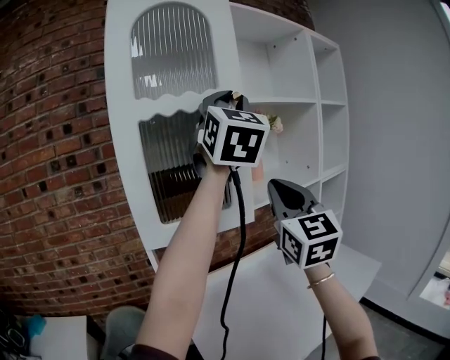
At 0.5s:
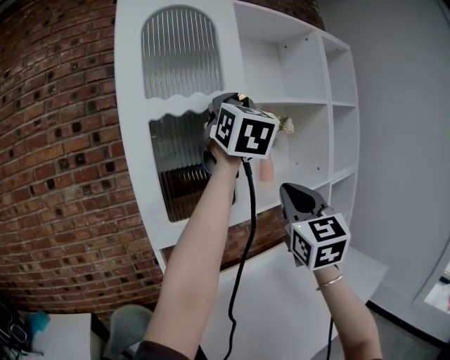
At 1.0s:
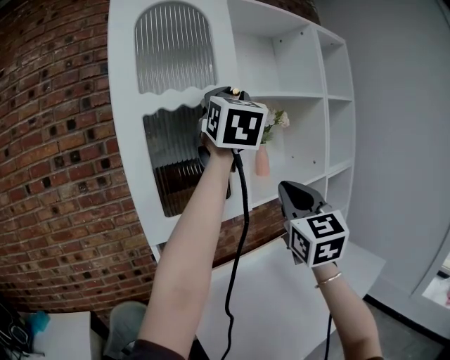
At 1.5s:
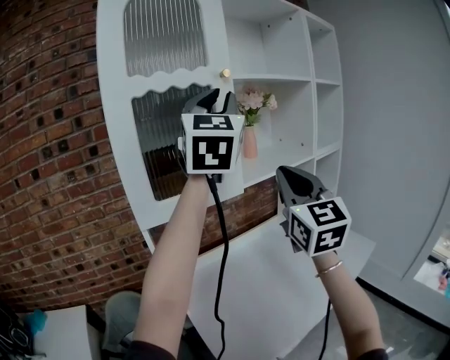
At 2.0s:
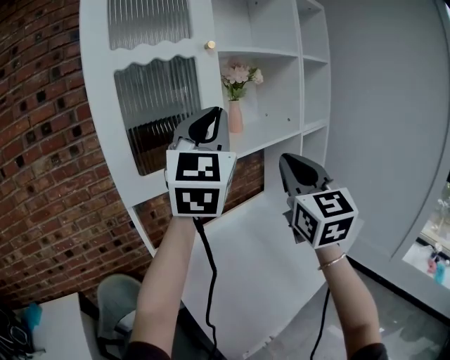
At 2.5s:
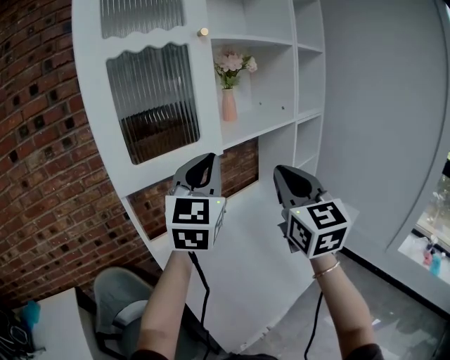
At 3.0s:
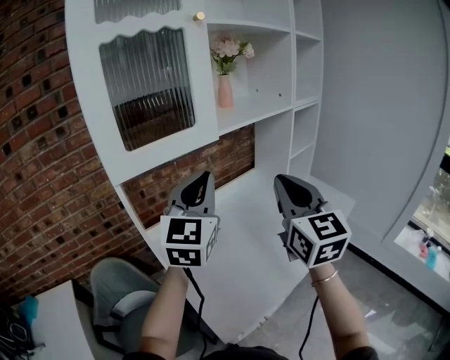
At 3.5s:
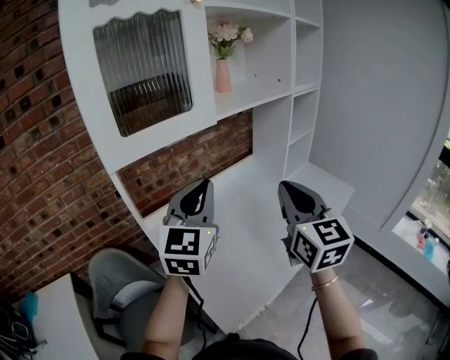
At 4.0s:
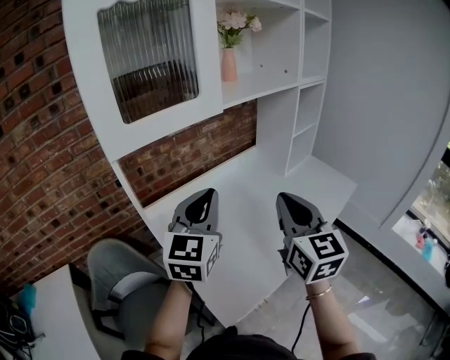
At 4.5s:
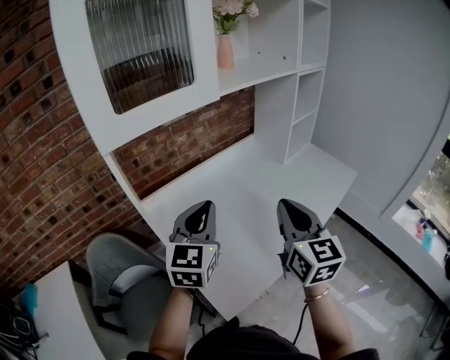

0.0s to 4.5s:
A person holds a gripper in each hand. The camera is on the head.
0.0s to 2.0s: The right gripper moves downward, some 5 cm; the left gripper moves downward and backward, approximately 15 cm.
2.0s to 4.5s: Both grippers move downward, about 30 cm. The right gripper changes its angle by roughly 20 degrees. Meanwhile the left gripper swivels approximately 30 degrees.

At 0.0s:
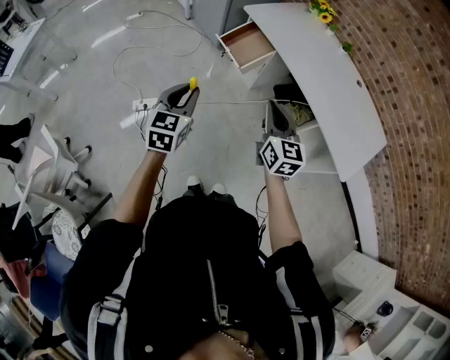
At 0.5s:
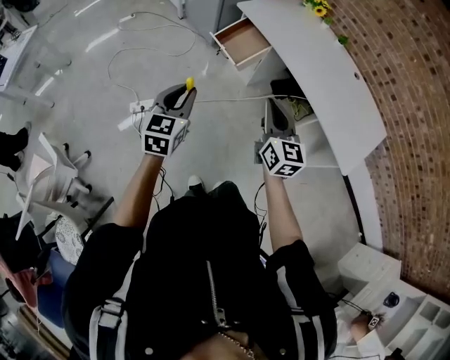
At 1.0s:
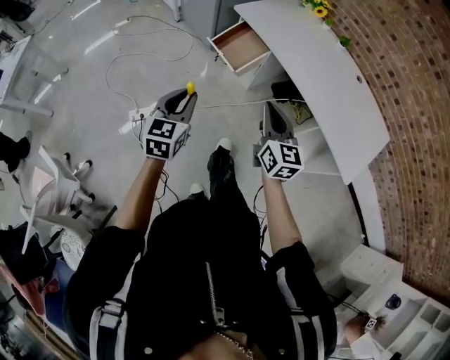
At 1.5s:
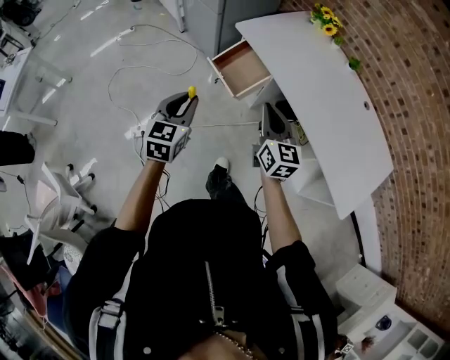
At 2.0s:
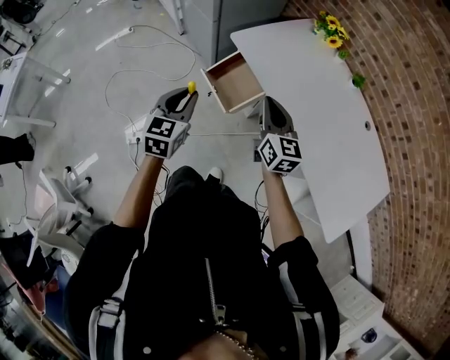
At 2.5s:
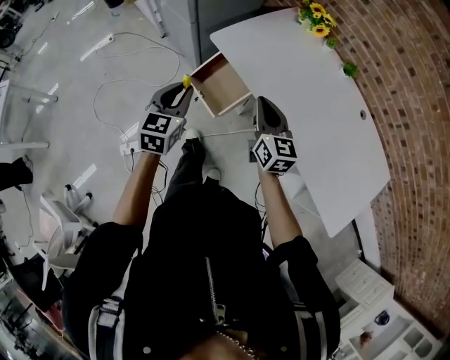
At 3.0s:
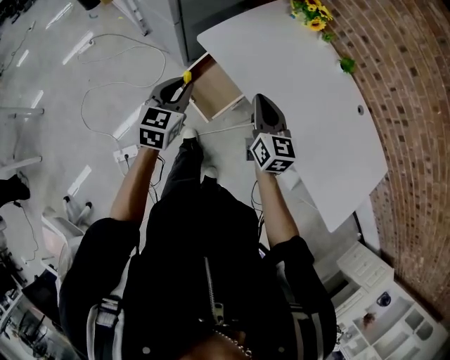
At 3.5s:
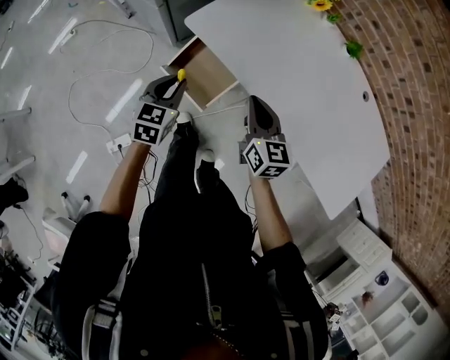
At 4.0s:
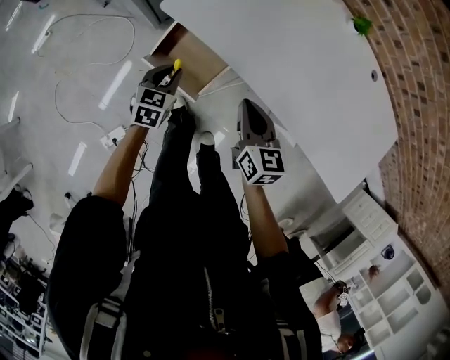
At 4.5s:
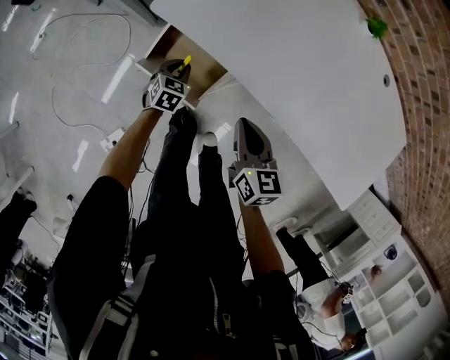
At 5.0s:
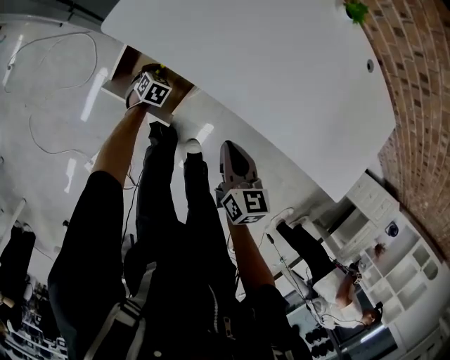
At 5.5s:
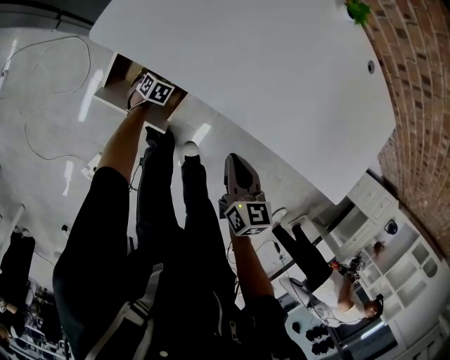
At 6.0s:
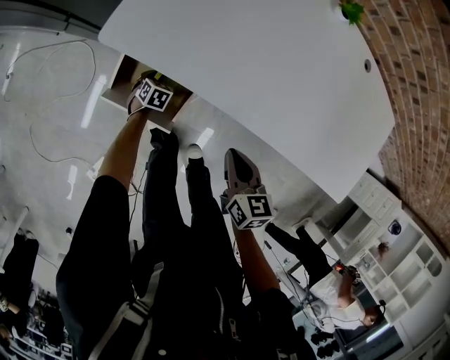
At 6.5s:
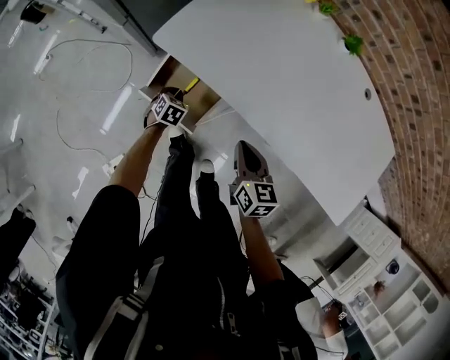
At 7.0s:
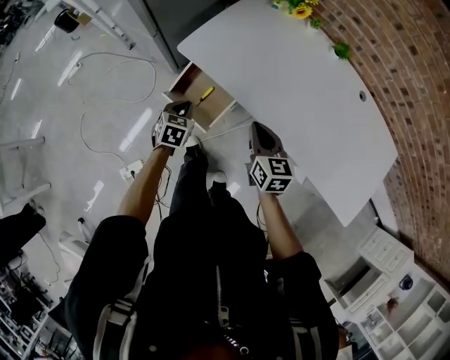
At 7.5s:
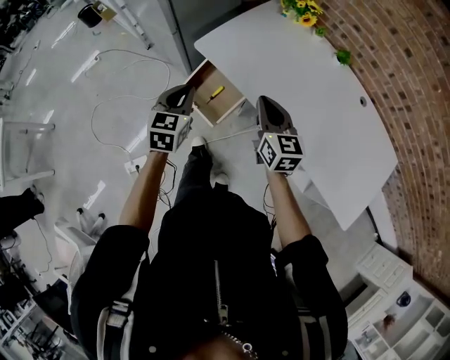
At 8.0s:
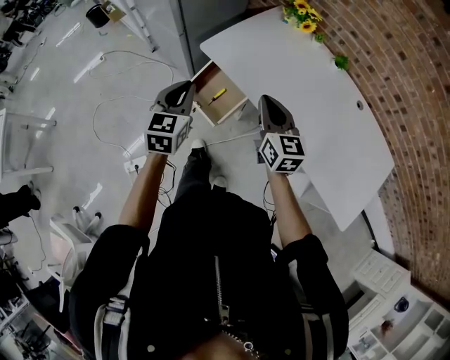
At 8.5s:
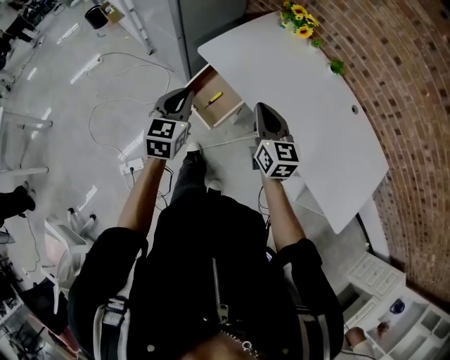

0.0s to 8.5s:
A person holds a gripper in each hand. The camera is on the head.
0.0s to 2.0s: Both grippers move forward, roughly 35 cm.
2.0s to 4.0s: The right gripper travels downward and forward by about 20 cm, and changes its angle by about 30 degrees, while the left gripper moves downward and forward, about 35 cm, and changes its angle by some 30 degrees.
4.0s to 6.5s: The left gripper shifts approximately 15 cm downward, and rotates some 20 degrees.
6.5s to 8.5s: The left gripper shifts about 40 cm upward, and points its fingers roughly 40 degrees further upward, while the right gripper heads upward, covering some 20 cm, and rotates roughly 30 degrees.

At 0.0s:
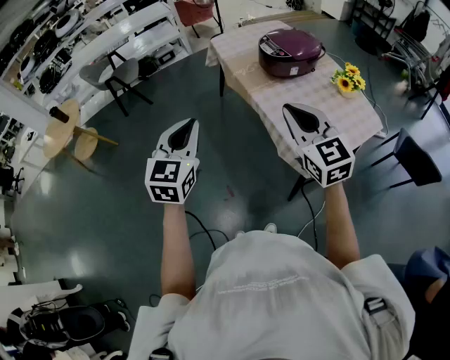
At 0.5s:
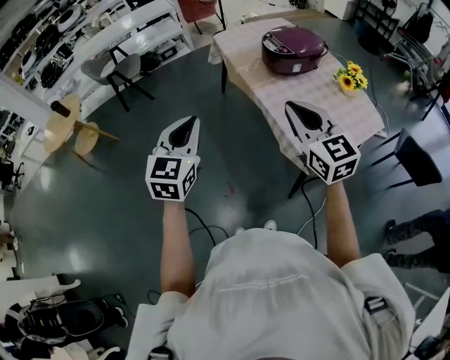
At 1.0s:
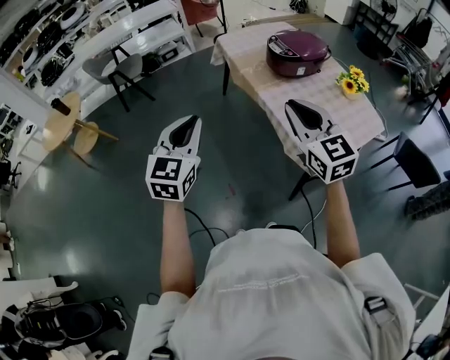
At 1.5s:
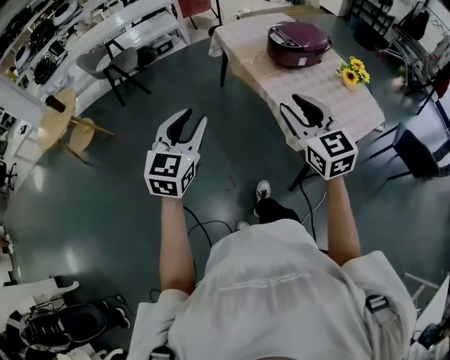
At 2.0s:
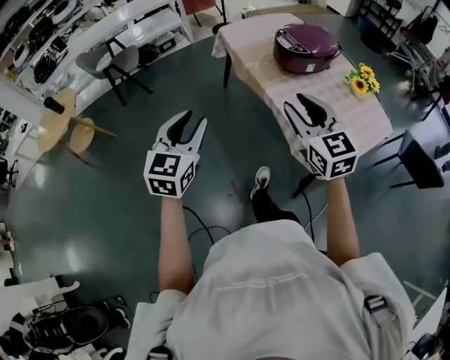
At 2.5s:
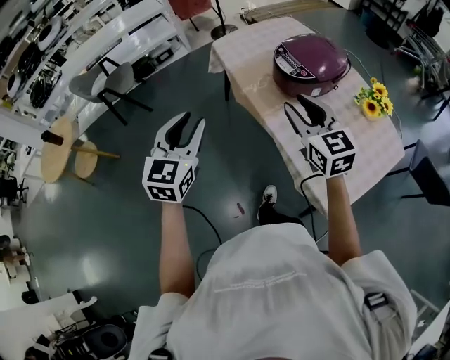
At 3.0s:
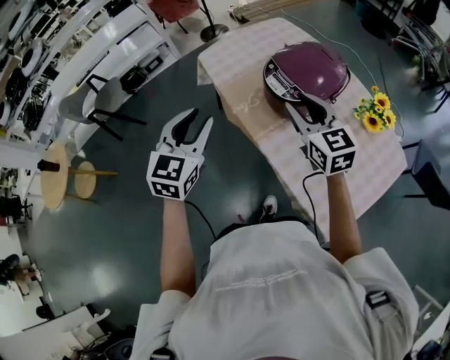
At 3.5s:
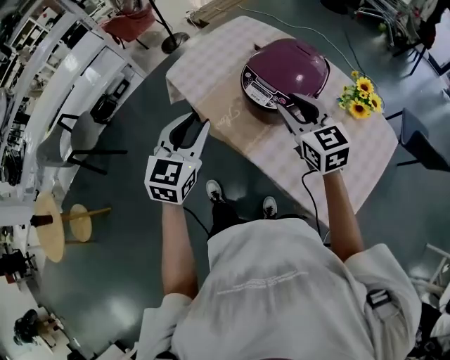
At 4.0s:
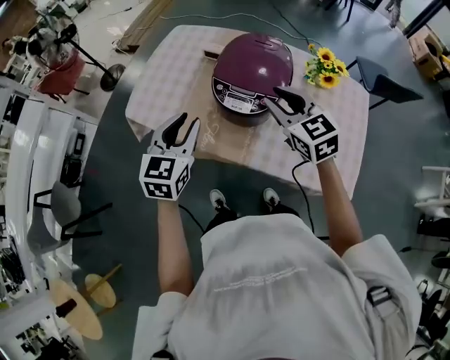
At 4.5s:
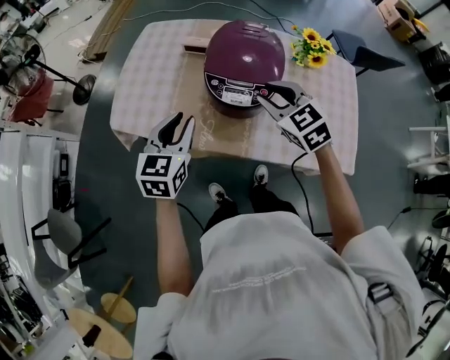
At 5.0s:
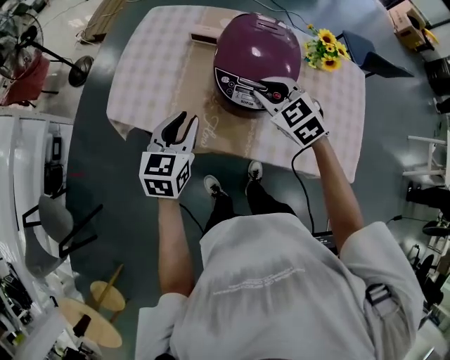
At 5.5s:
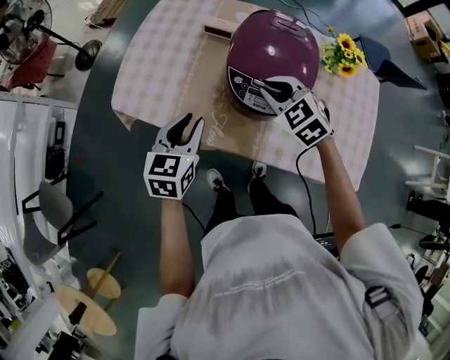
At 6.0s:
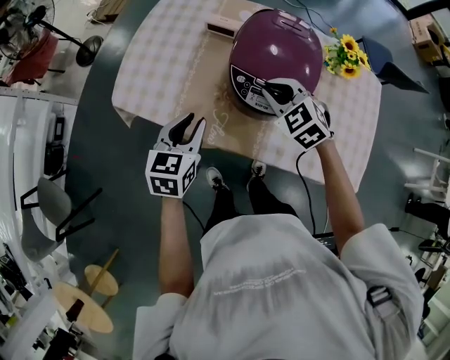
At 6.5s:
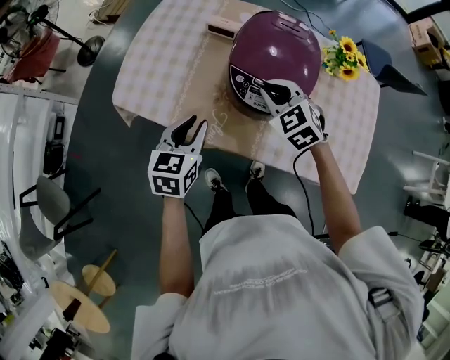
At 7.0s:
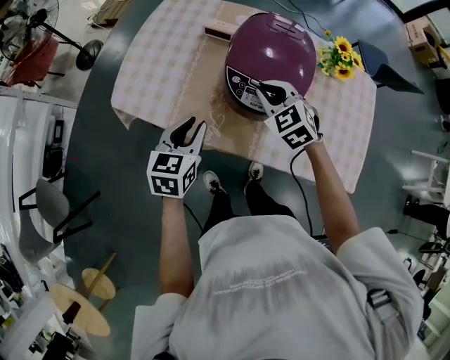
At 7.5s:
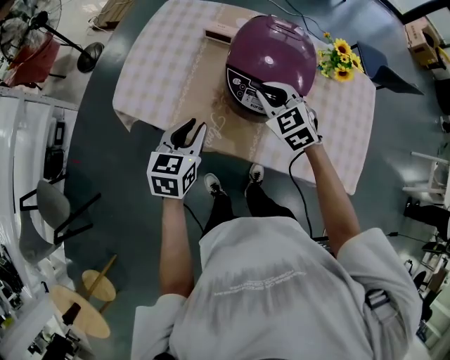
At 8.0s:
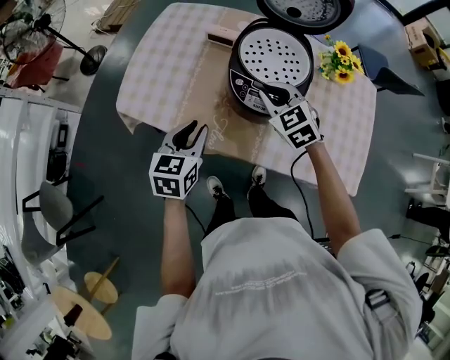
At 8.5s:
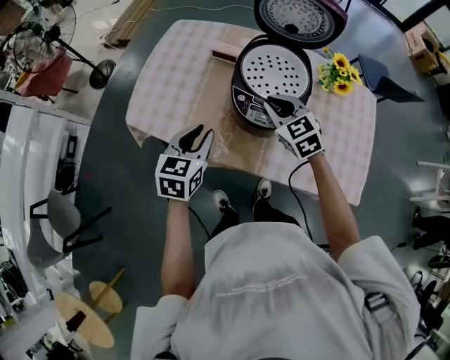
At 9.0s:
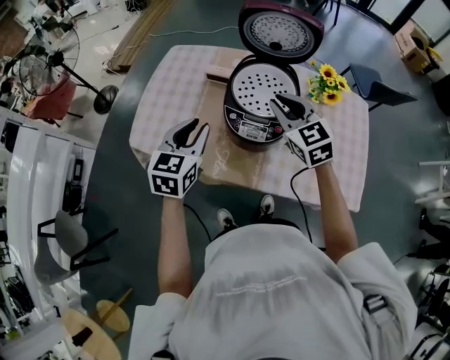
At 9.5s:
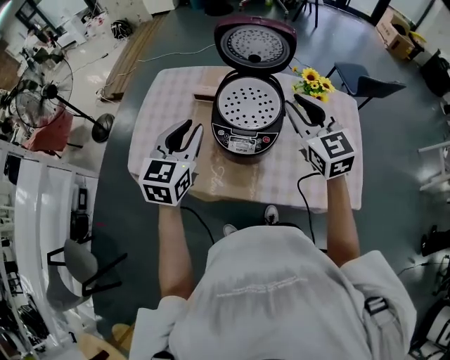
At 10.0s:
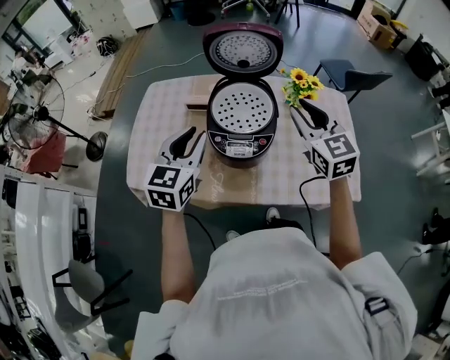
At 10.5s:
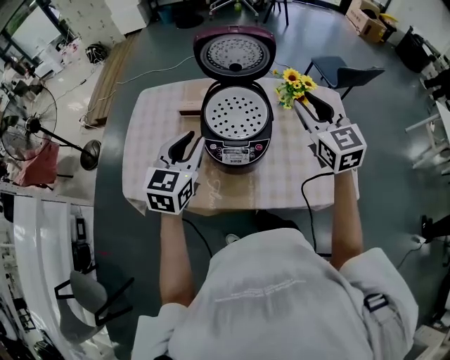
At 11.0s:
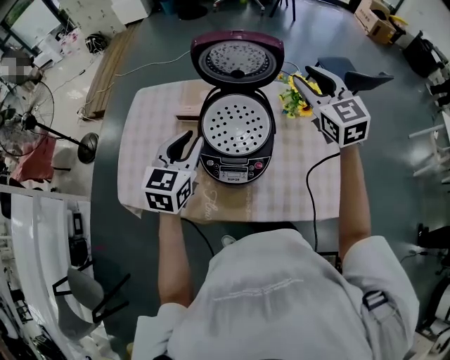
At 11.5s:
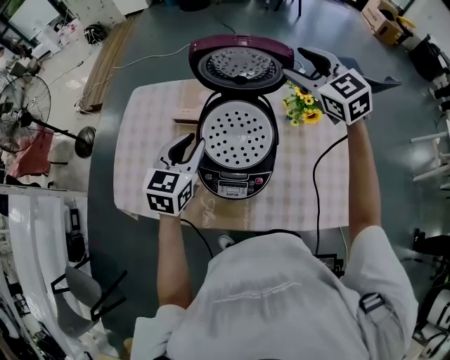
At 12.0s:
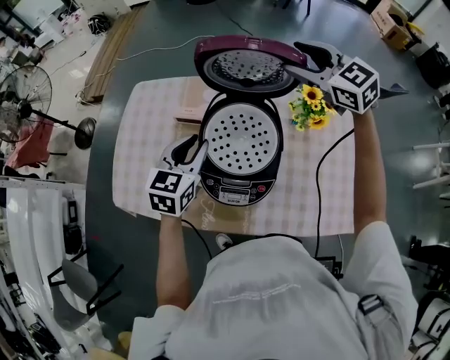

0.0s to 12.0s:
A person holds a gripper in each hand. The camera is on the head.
0.0s to 2.0s: The right gripper travels forward and to the left by about 10 cm, and opens up. Meanwhile the left gripper goes approximately 5 cm to the left, and opens up.
2.0s to 4.0s: The two grippers travel together, approximately 50 cm. The right gripper turns by roughly 40 degrees, while the left gripper swivels some 40 degrees.
4.0s to 6.0s: The left gripper goes approximately 10 cm downward. Meanwhile the right gripper shifts some 15 cm downward, to the left and forward, and turns by approximately 30 degrees.
6.0s to 8.0s: The grippers make only small movements.
8.0s to 10.0s: The right gripper heads upward and to the right, covering some 25 cm, and changes its angle by some 40 degrees. The left gripper moves upward and forward, some 15 cm, and turns by approximately 30 degrees.
10.0s to 12.0s: The left gripper heads forward and downward, covering roughly 15 cm. Meanwhile the right gripper is displaced forward by about 25 cm, turns by some 30 degrees, and opens.

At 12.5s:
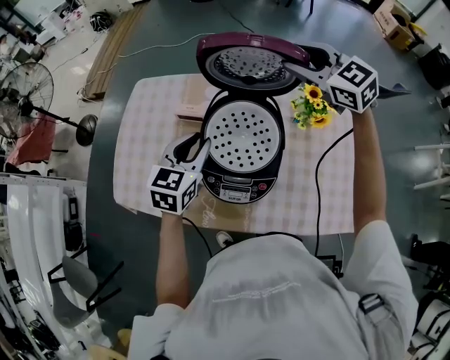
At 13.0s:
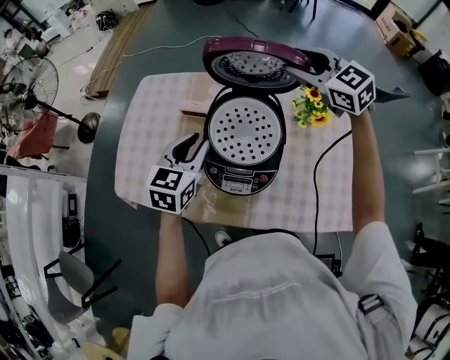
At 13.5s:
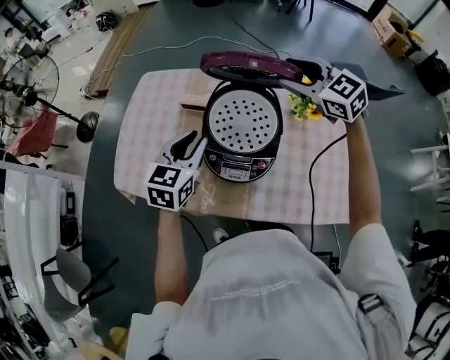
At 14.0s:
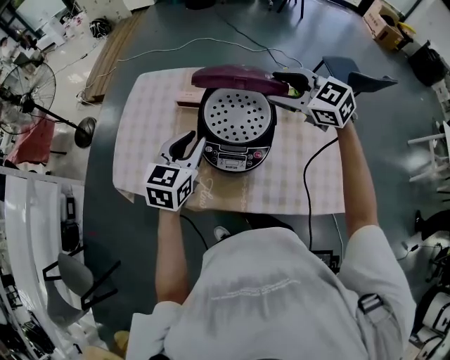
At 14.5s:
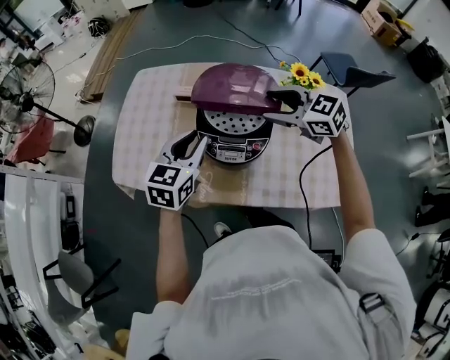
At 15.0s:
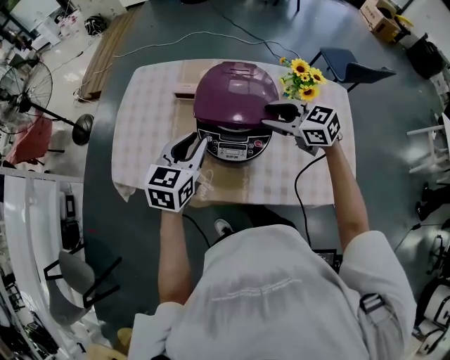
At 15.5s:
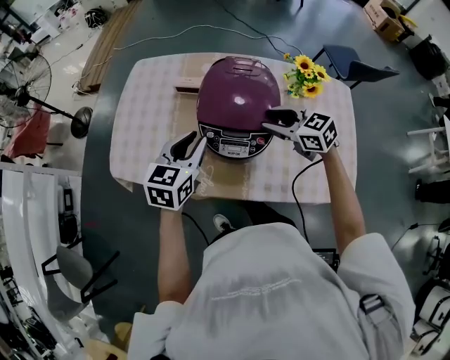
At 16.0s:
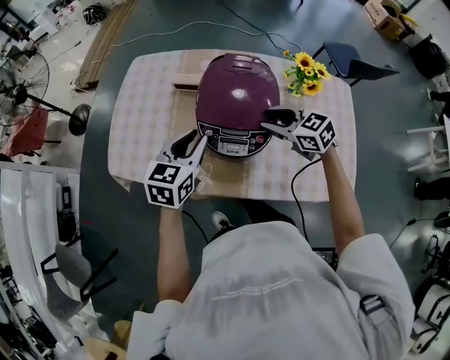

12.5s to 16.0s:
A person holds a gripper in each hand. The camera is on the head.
12.5s to 14.5s: The right gripper heads backward and downward, covering roughly 20 cm; the left gripper travels backward by roughly 10 cm.
14.5s to 16.0s: The right gripper travels downward by roughly 10 cm, and closes its fingers.
